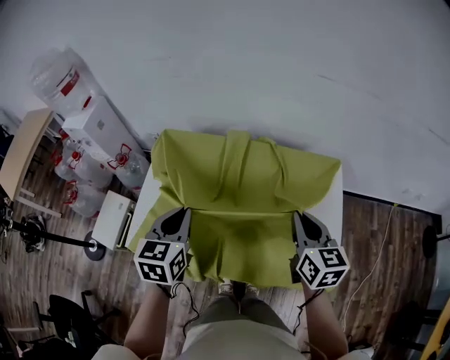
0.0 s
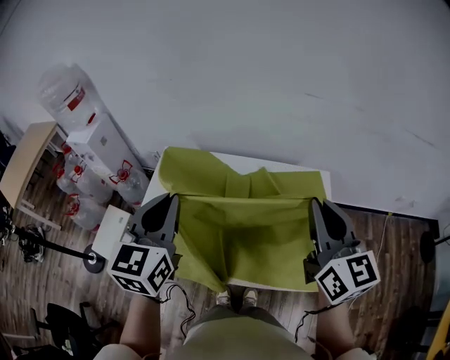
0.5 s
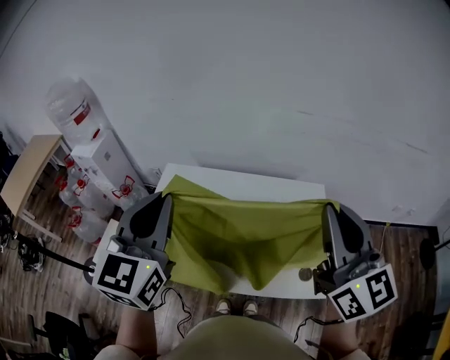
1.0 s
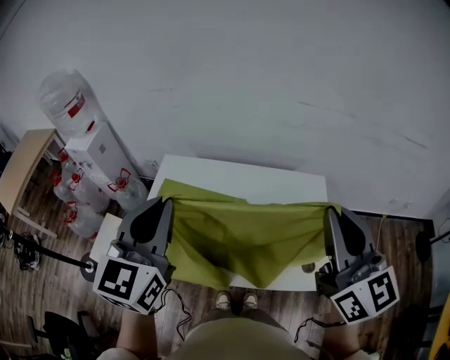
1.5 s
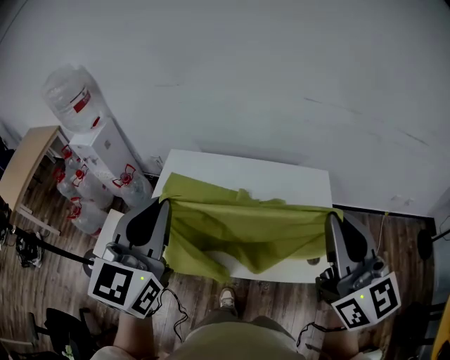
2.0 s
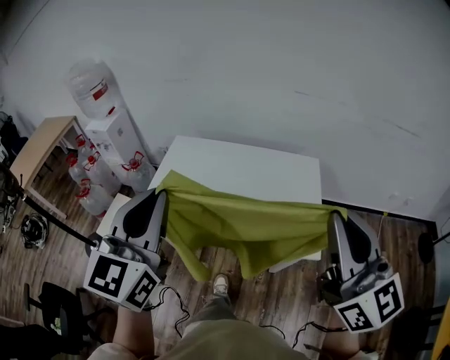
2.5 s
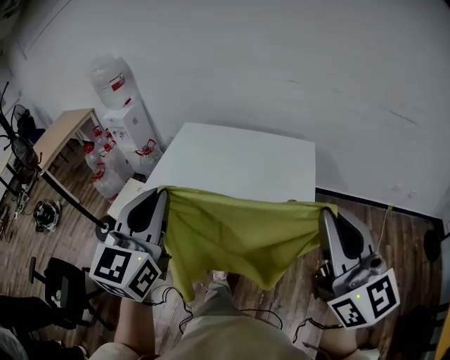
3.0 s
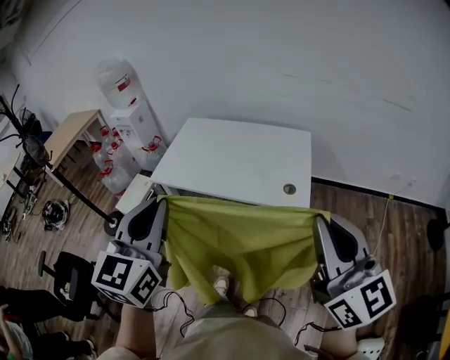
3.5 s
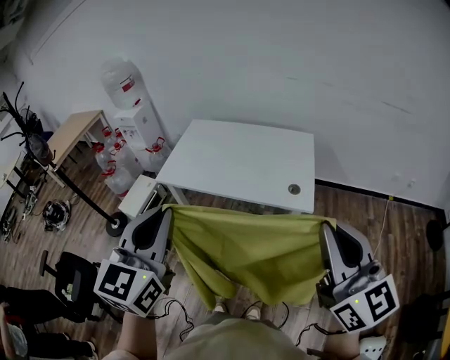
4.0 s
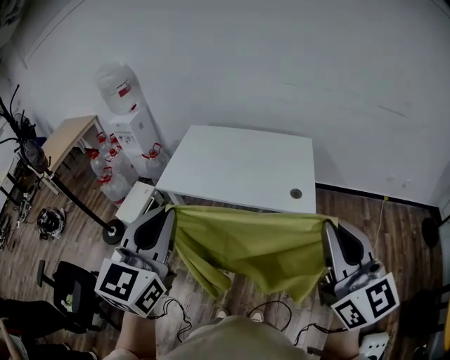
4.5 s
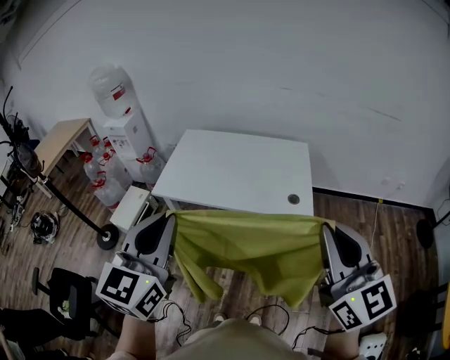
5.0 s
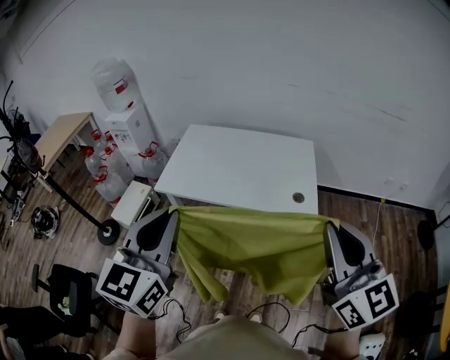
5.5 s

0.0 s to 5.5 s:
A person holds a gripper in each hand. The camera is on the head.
0.0 to 2.0 s: Both grippers travel together upward and backward, roughly 30 cm. The right gripper rotates roughly 30 degrees. The left gripper swivels roughly 30 degrees.
2.0 to 3.5 s: The pair of grippers is taken backward, roughly 50 cm.
3.5 to 5.5 s: Both grippers move to the left, approximately 10 cm.

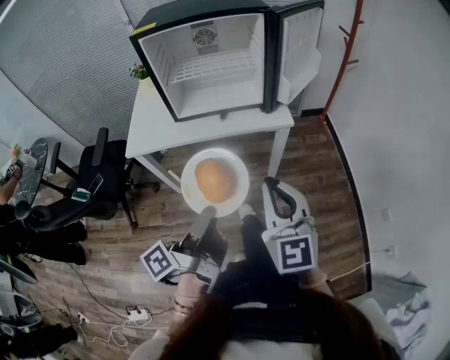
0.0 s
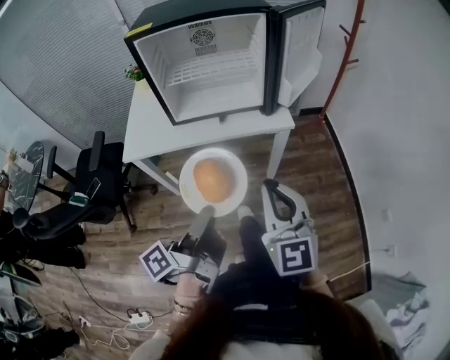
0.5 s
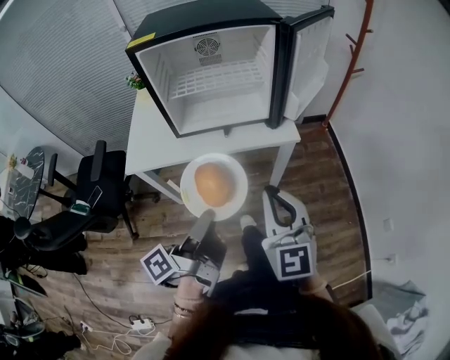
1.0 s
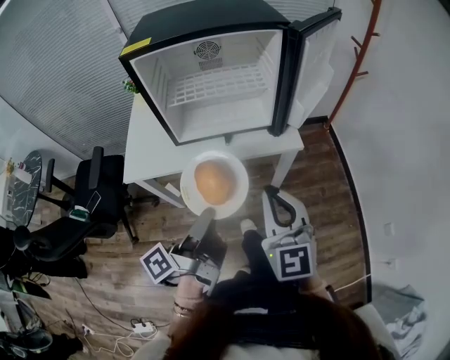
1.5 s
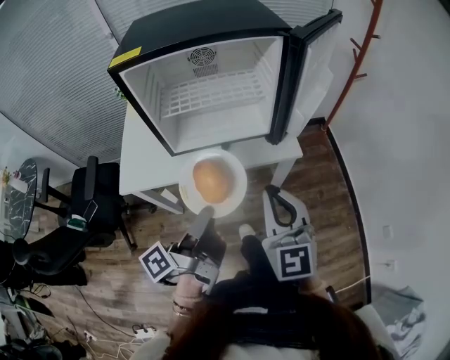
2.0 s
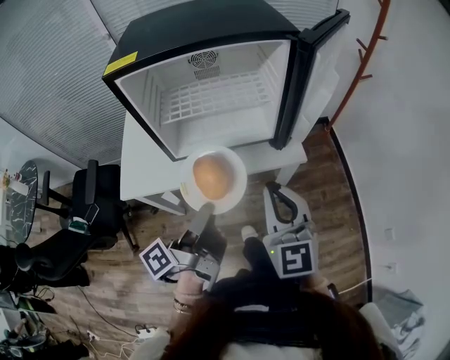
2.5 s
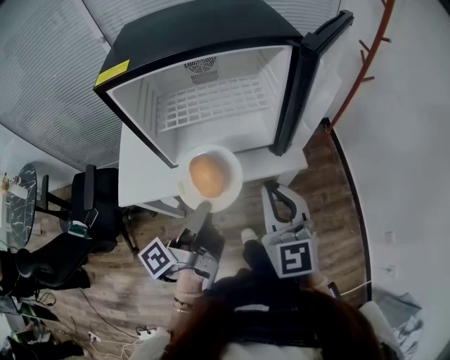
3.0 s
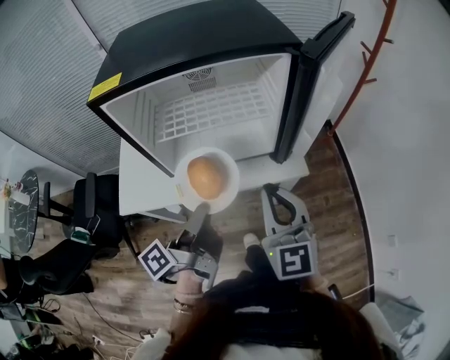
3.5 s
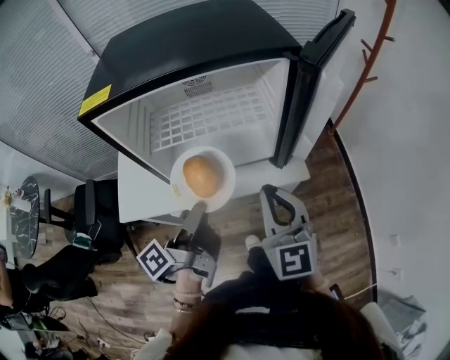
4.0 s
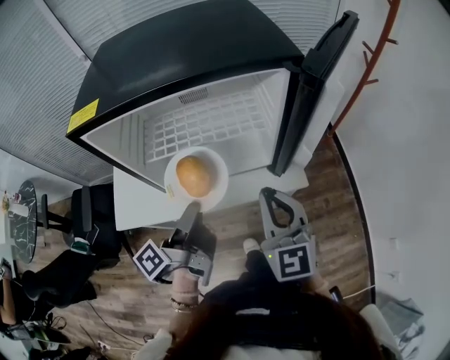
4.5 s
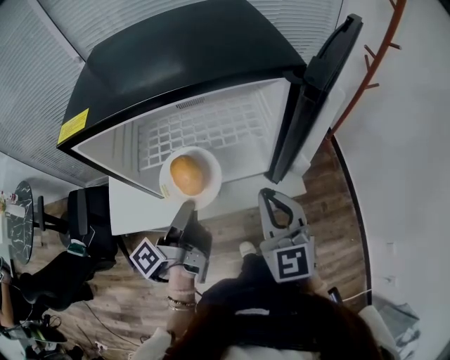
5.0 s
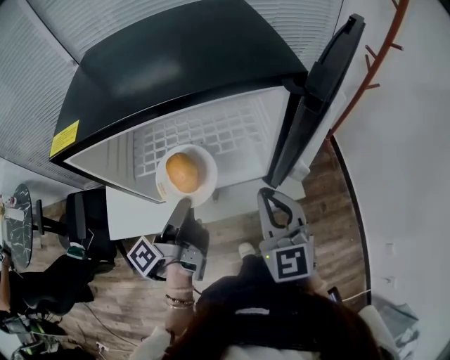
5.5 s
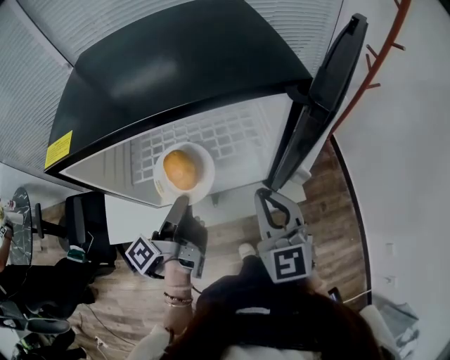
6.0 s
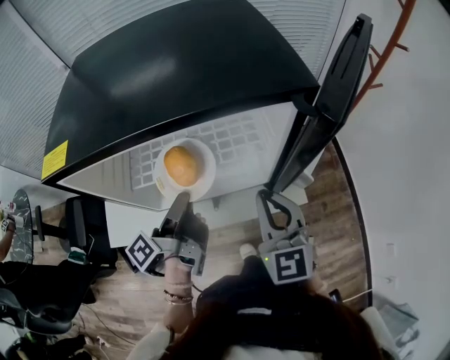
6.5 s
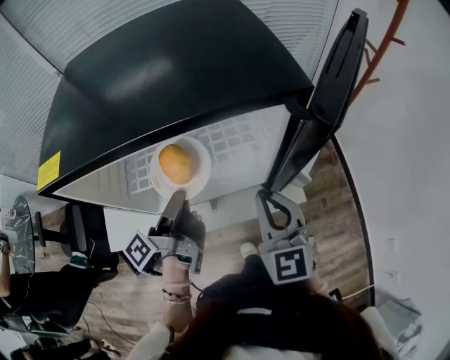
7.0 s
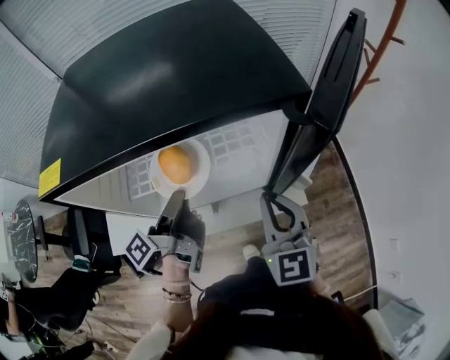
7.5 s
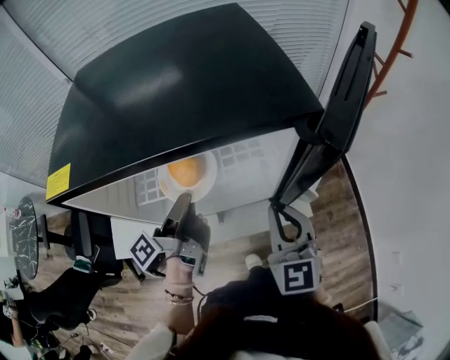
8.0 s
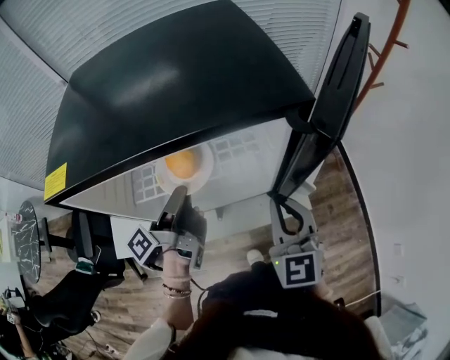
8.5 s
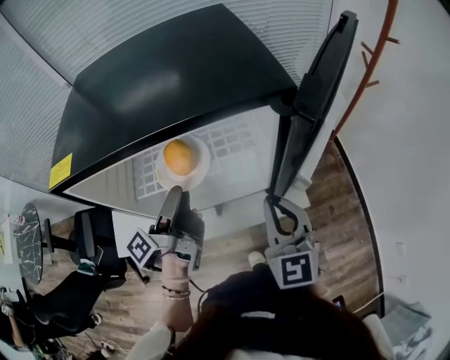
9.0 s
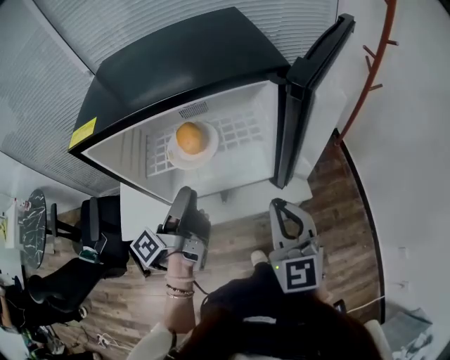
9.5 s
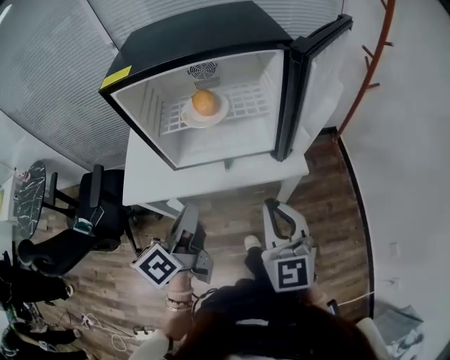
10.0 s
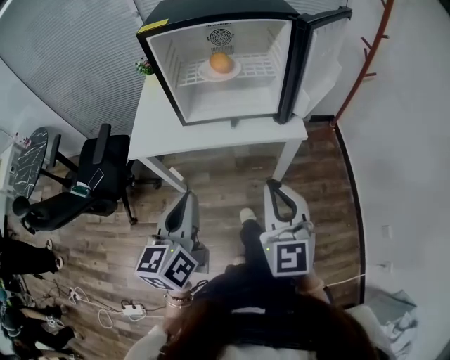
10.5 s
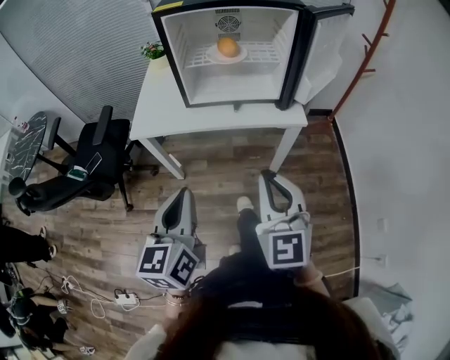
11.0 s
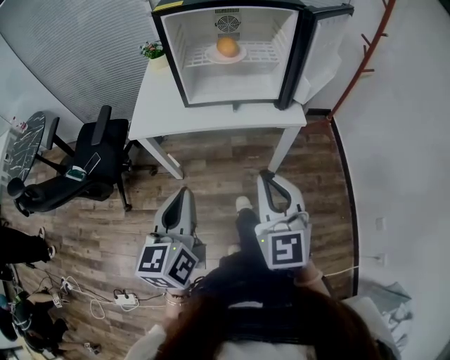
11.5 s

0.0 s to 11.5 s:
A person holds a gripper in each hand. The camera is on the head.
0.0 to 2.0 s: The right gripper shifts by approximately 15 cm.
2.0 to 4.0 s: The right gripper moves approximately 10 cm.
4.0 to 6.0 s: The right gripper shifts by roughly 10 cm.
7.5 to 9.5 s: The right gripper ends up about 10 cm from where it was.
9.5 to 11.5 s: The right gripper ends up roughly 30 cm from where it was.

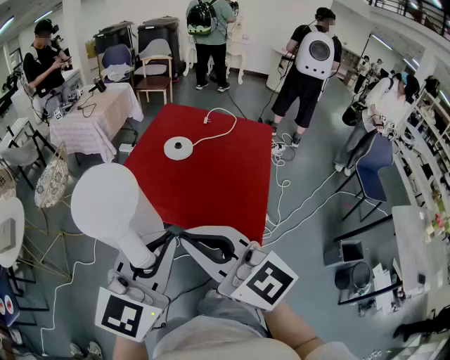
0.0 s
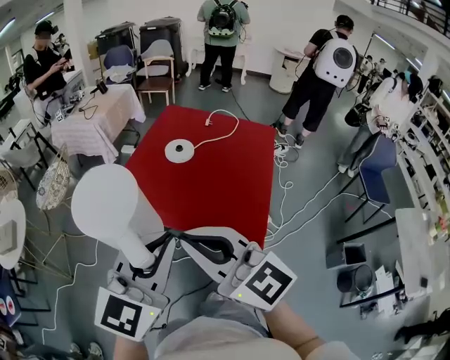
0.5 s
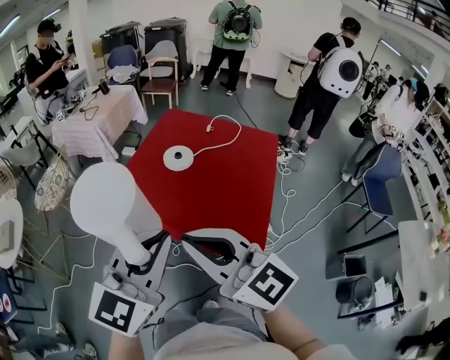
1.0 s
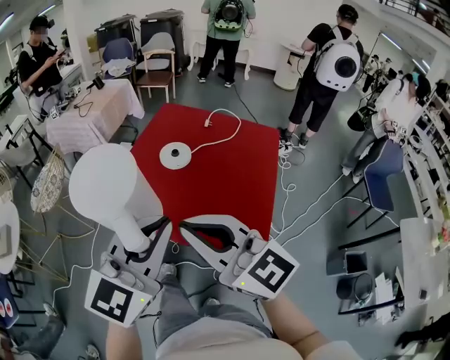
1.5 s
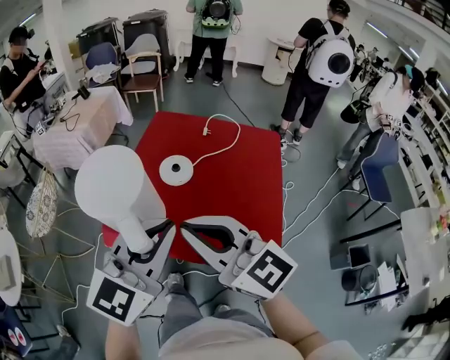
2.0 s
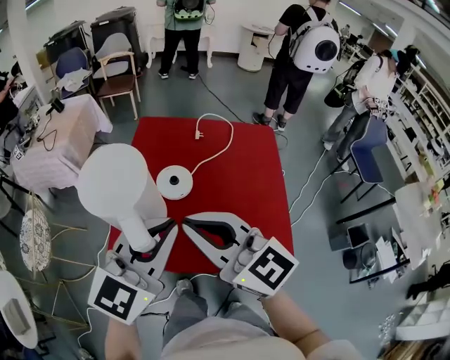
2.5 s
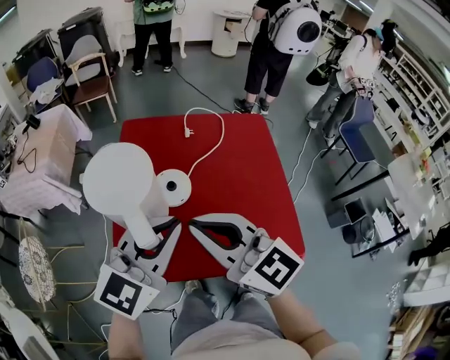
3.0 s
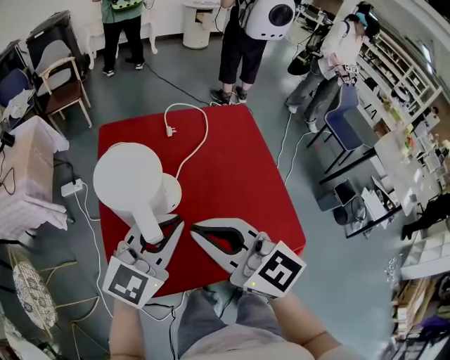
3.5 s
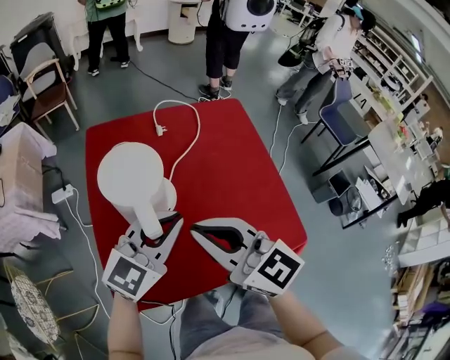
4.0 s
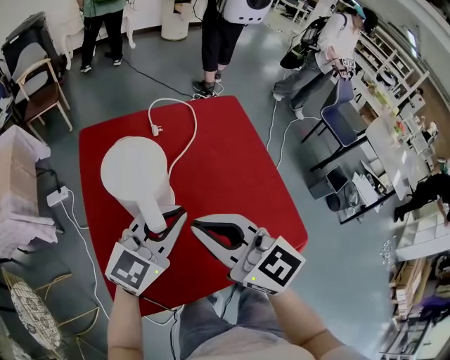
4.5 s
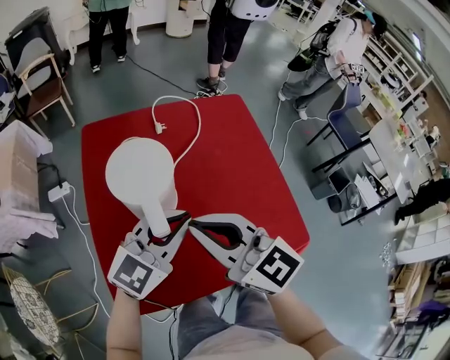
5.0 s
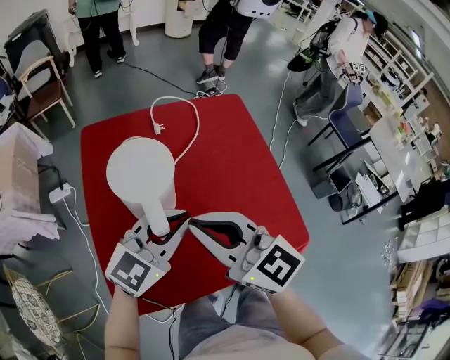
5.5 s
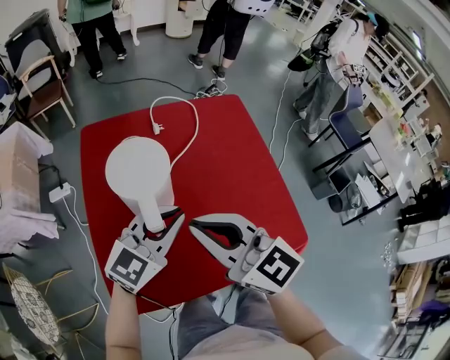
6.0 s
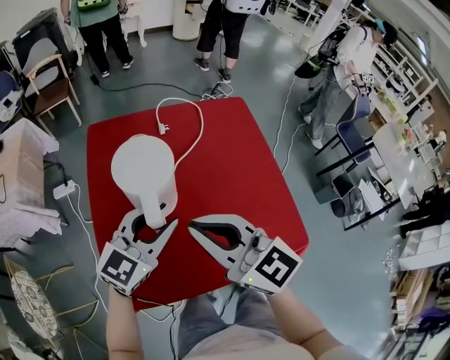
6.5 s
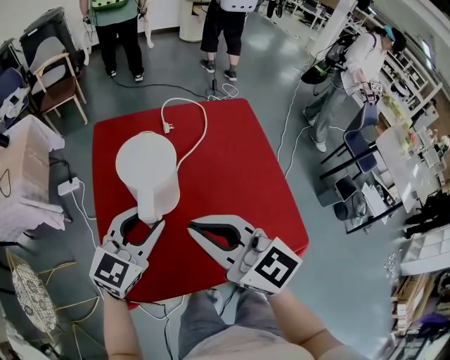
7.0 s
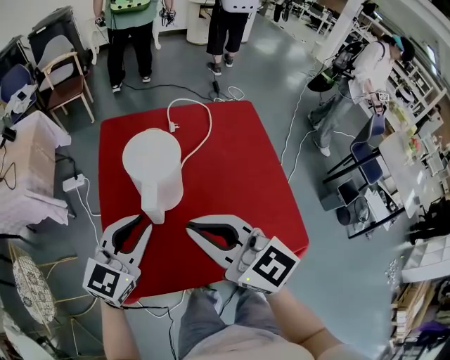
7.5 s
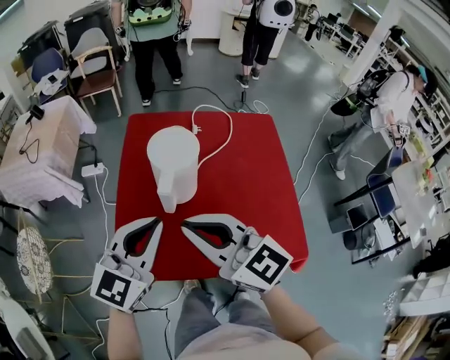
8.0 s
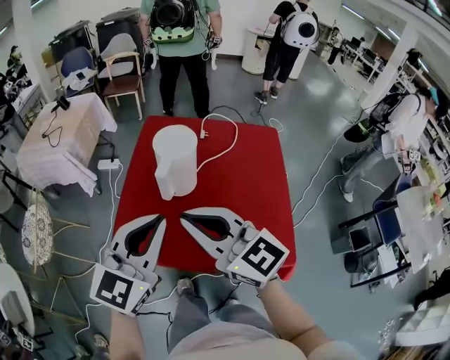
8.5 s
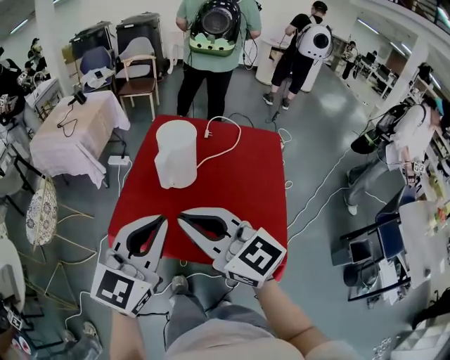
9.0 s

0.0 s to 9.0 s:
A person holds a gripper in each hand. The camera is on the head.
0.0 to 2.0 s: The two grippers go some 20 cm forward.
2.0 to 4.5 s: The right gripper ends up about 25 cm from where it was, and rotates some 30 degrees, while the left gripper moves some 30 cm, and turns by about 40 degrees.
4.5 to 7.0 s: The left gripper travels to the left by roughly 5 cm, and opens up.
7.0 to 9.0 s: The right gripper changes place by roughly 15 cm, and rotates about 30 degrees; the left gripper changes place by some 25 cm, swivels some 30 degrees, and closes its fingers.

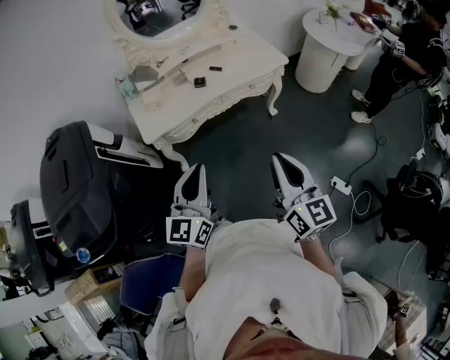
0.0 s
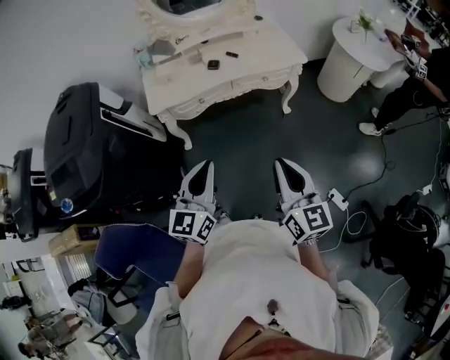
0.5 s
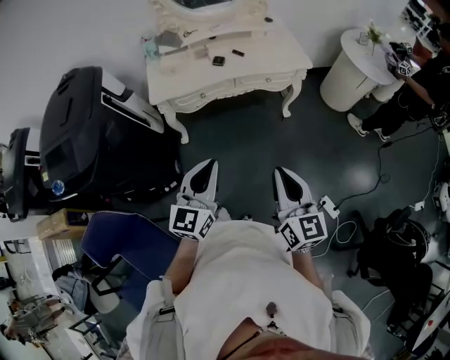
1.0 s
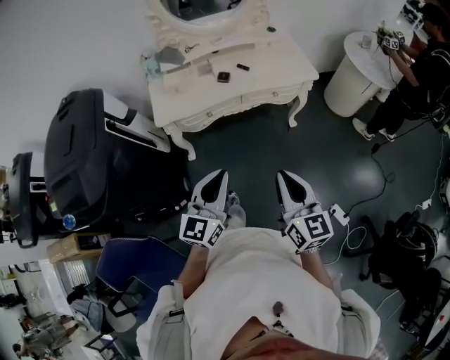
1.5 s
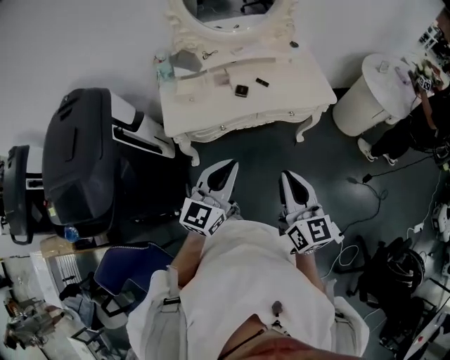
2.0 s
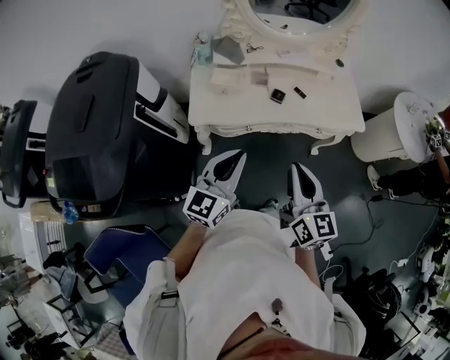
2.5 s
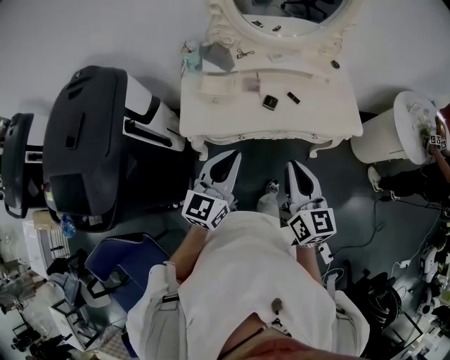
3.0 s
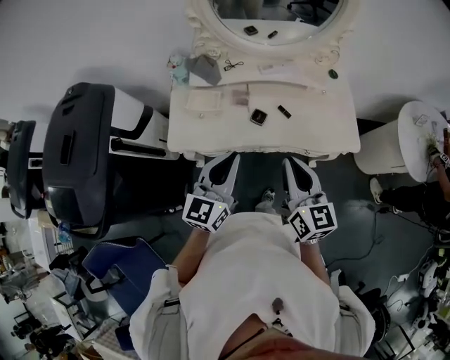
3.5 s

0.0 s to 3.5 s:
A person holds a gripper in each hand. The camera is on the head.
0.0 to 2.0 s: The two grippers go roughly 15 cm forward.
2.0 to 3.5 s: The two grippers go some 25 cm forward.
